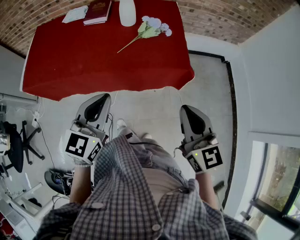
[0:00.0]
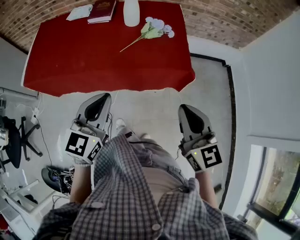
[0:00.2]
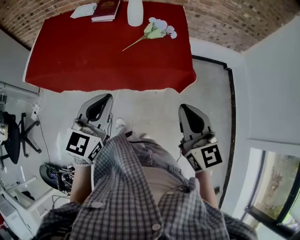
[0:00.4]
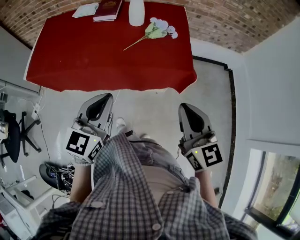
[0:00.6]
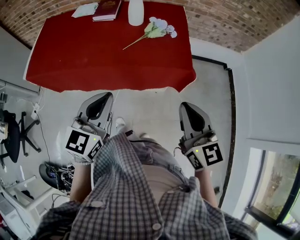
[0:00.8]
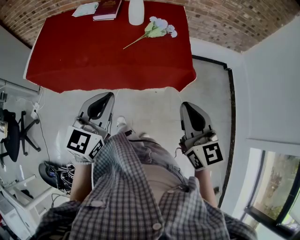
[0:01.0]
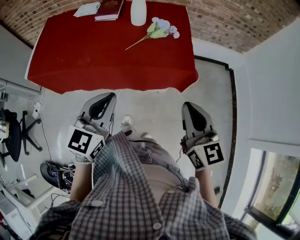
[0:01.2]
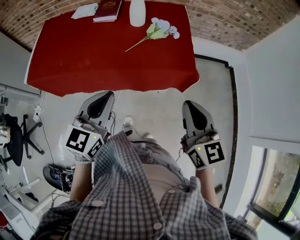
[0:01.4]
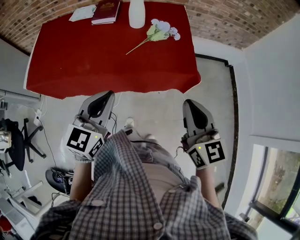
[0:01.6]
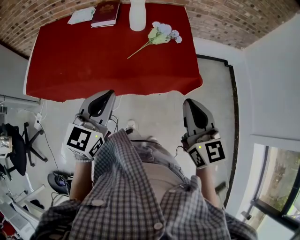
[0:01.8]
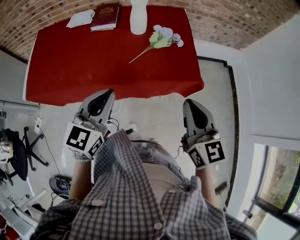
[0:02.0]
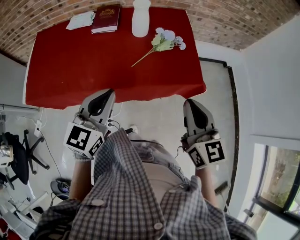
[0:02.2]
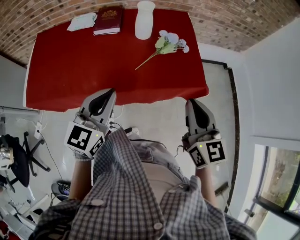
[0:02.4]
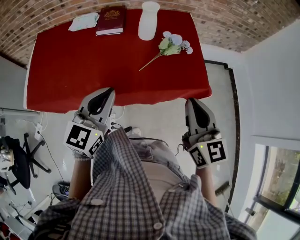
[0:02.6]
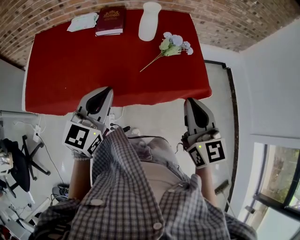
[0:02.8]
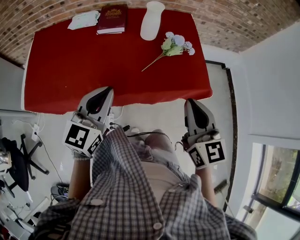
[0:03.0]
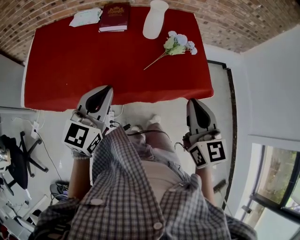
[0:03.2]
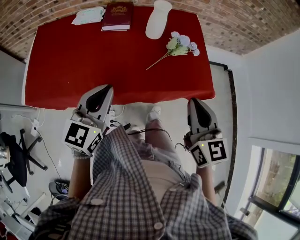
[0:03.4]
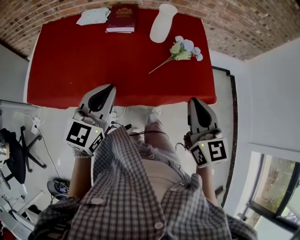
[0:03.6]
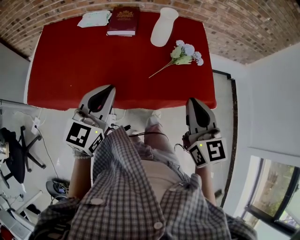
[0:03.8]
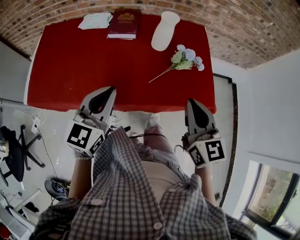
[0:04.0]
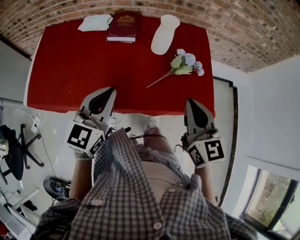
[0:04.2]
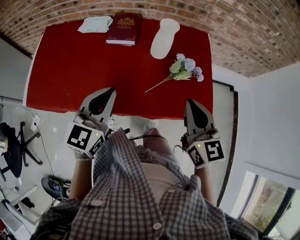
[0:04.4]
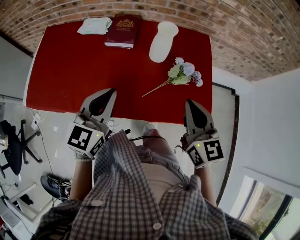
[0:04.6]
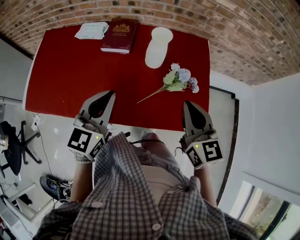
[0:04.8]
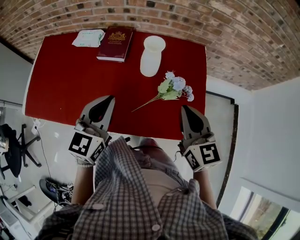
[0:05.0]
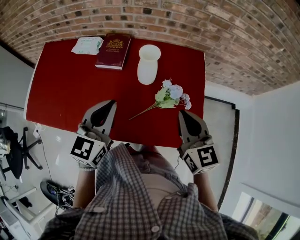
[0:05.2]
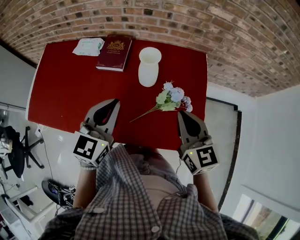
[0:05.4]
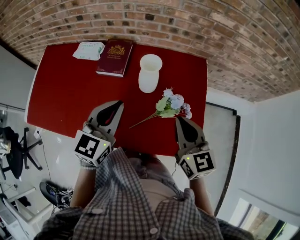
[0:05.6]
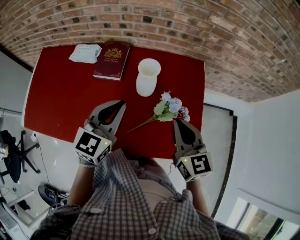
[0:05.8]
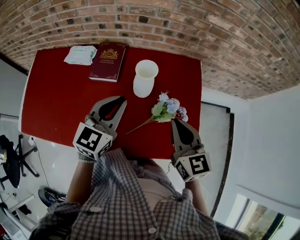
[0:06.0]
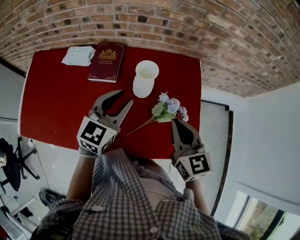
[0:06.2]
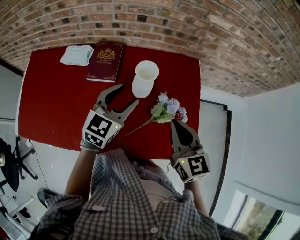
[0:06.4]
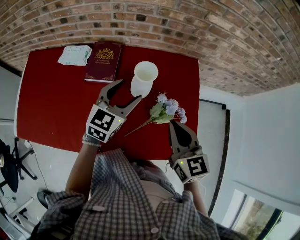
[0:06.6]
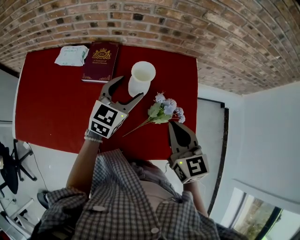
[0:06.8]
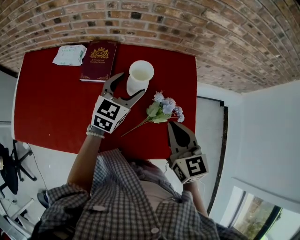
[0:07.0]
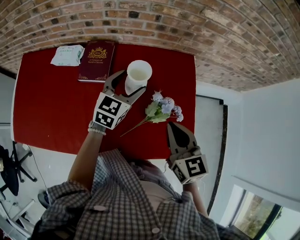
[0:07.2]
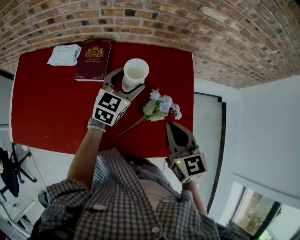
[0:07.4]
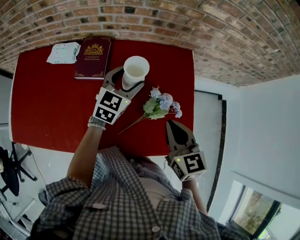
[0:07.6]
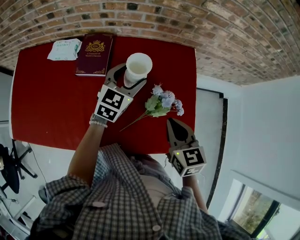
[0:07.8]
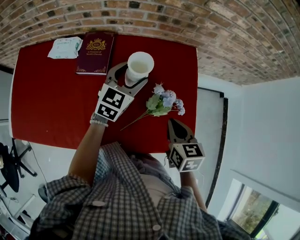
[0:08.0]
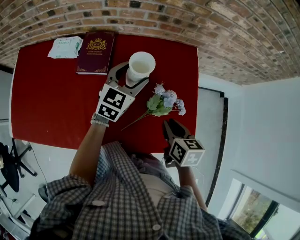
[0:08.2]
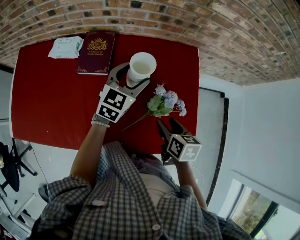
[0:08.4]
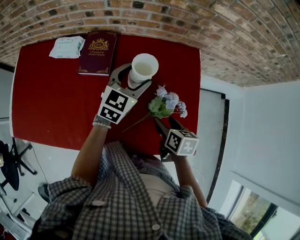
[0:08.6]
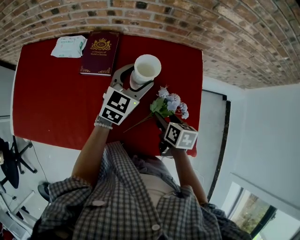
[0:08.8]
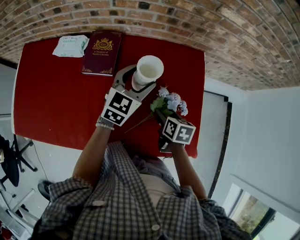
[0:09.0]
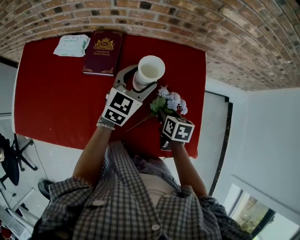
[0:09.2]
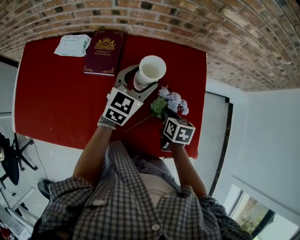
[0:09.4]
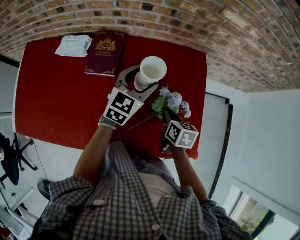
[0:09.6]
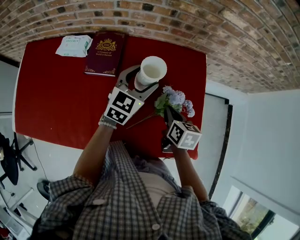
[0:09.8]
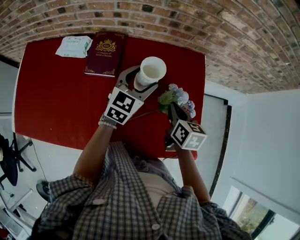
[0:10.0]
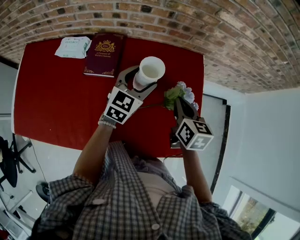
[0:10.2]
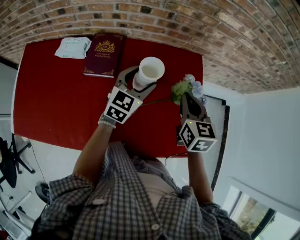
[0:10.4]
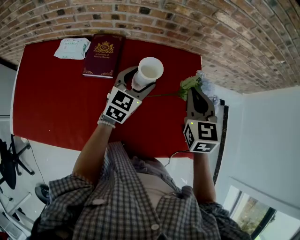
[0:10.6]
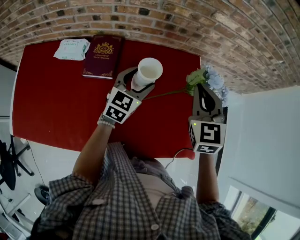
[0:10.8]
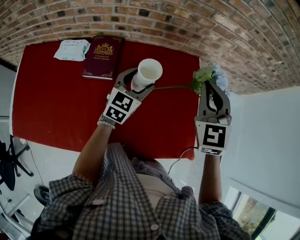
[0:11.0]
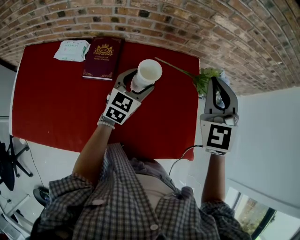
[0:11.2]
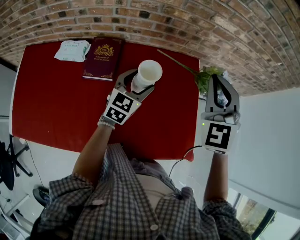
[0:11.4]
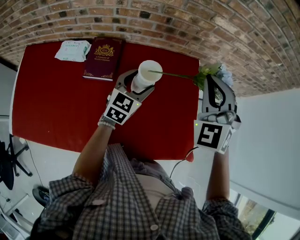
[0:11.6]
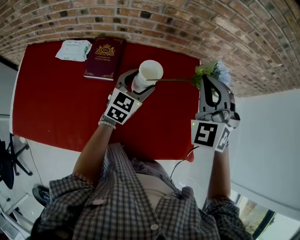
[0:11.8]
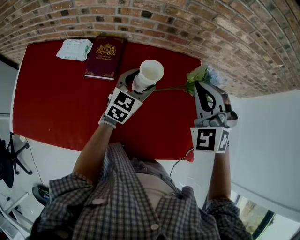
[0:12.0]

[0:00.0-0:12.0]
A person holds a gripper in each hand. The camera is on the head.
0:00.0 to 0:01.6: There are only small adjustments of the grippers.
0:01.6 to 0:03.0: The grippers both shift to the left and forward by some 15 cm.
0:03.0 to 0:04.4: The grippers both shift forward by approximately 10 cm.
0:04.4 to 0:06.0: The right gripper travels forward by approximately 15 cm. Meanwhile the left gripper is displaced forward and to the right by roughly 20 cm.
0:06.0 to 0:07.6: The left gripper travels forward, downward and to the right by approximately 15 cm, and opens up.
0:07.6 to 0:09.0: The right gripper moves downward, some 15 cm, rotates some 40 degrees, and opens up.
0:09.0 to 0:10.4: The right gripper heads upward, covering some 15 cm, turns by approximately 30 degrees, and closes its fingers.
0:10.4 to 0:12.0: The right gripper goes some 10 cm upward, and rotates around the line of its fingers by about 70 degrees, counterclockwise from behind.

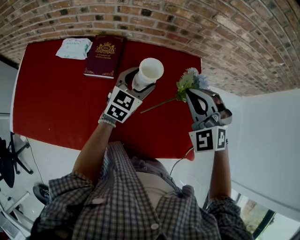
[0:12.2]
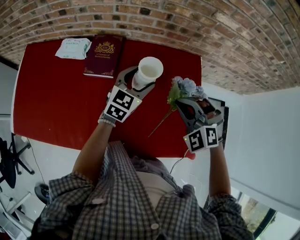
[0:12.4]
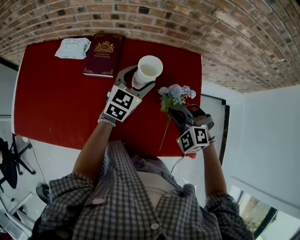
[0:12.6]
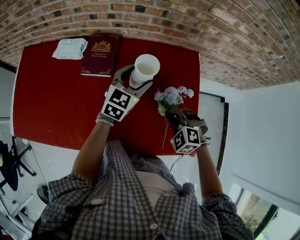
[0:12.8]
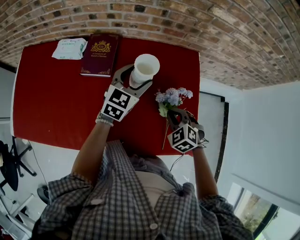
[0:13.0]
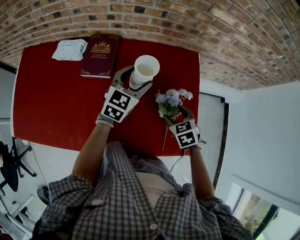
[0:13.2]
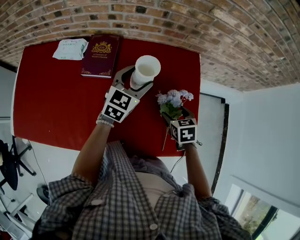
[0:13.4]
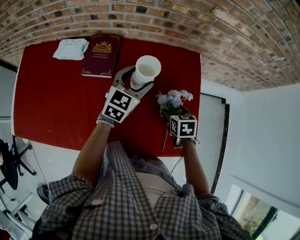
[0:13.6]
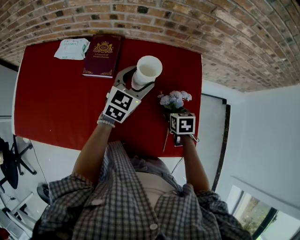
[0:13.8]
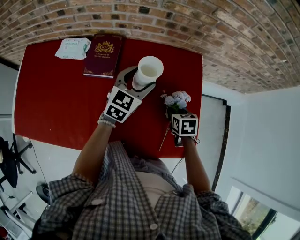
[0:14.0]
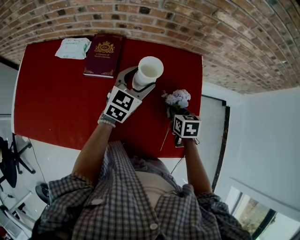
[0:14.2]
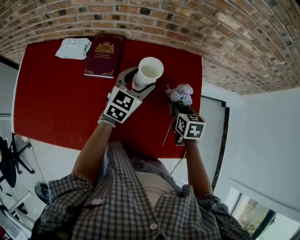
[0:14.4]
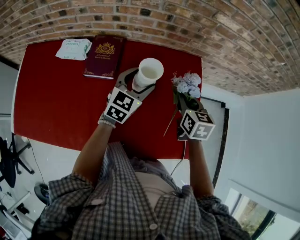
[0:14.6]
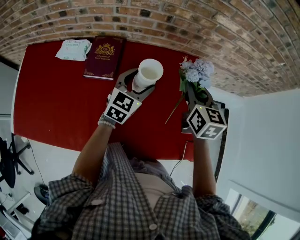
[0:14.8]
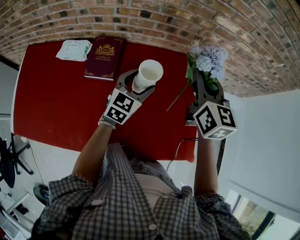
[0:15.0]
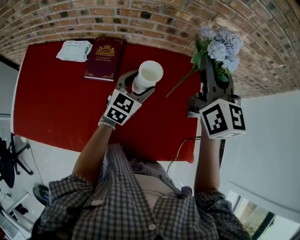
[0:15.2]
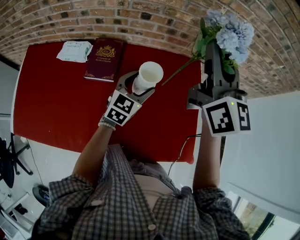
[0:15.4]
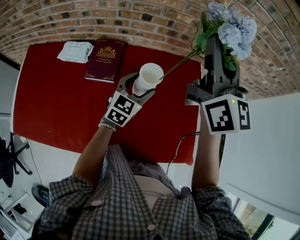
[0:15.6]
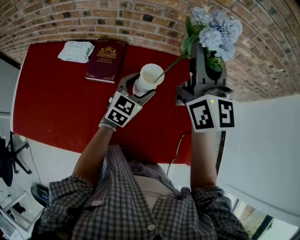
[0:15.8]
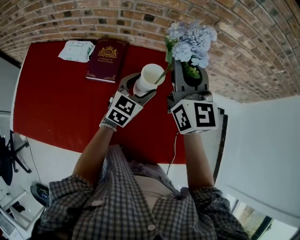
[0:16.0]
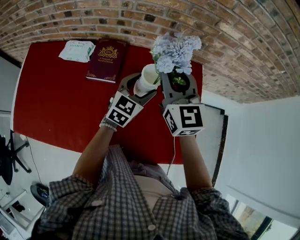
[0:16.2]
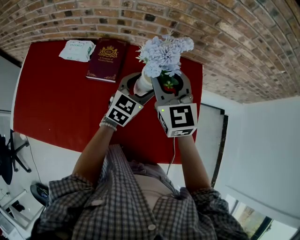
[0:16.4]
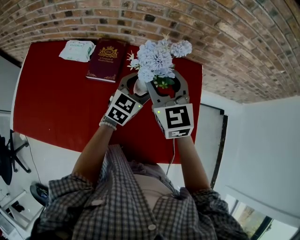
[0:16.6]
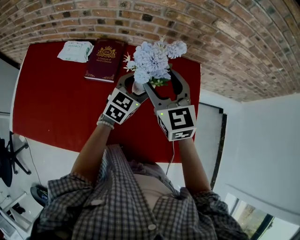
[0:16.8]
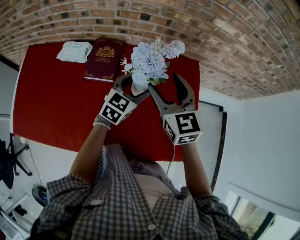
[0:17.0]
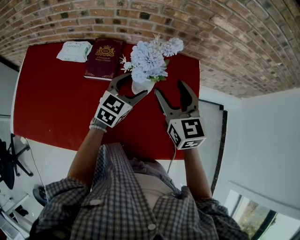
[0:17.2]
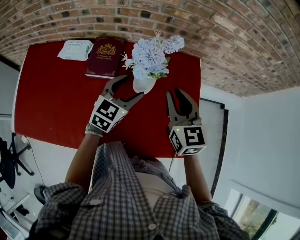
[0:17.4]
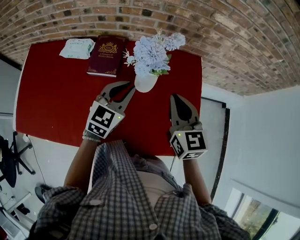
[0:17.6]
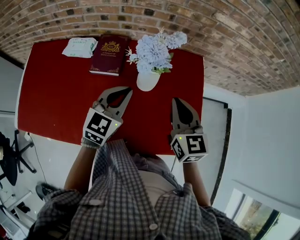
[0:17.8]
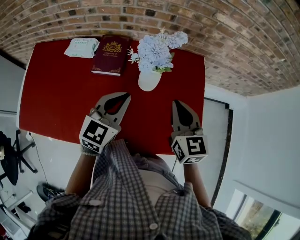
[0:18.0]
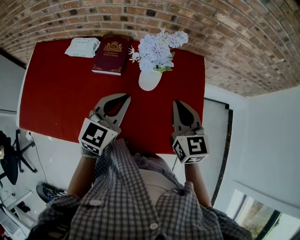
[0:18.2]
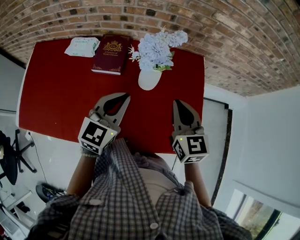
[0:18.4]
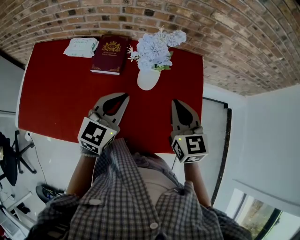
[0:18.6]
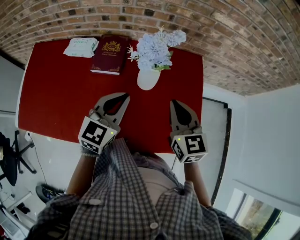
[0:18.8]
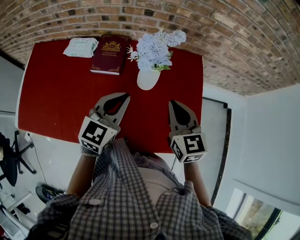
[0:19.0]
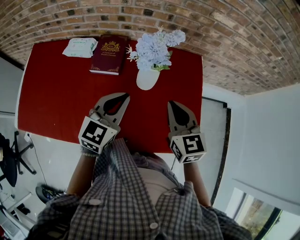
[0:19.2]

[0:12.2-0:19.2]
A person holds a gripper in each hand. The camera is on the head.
0:12.2 to 0:13.6: The right gripper is displaced downward by about 25 cm, rotates around the line of its fingers by about 70 degrees, clockwise from behind, and opens up.
0:13.6 to 0:15.0: The right gripper travels upward by approximately 30 cm, points its fingers approximately 50 degrees further upward, and closes up.
0:15.0 to 0:16.4: The right gripper moves to the left, roughly 15 cm, travels upward and back again, roughly 15 cm each way, and rotates about 20 degrees.
0:16.4 to 0:17.8: The right gripper shifts some 15 cm backward, to the right and downward, rotates about 20 degrees, and closes its fingers; the left gripper moves backward, to the left and upward, approximately 15 cm, and closes up.
0:17.8 to 0:19.2: The grippers move only a little.

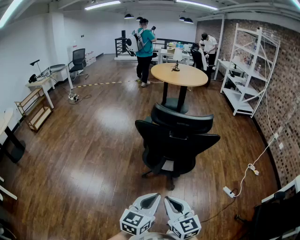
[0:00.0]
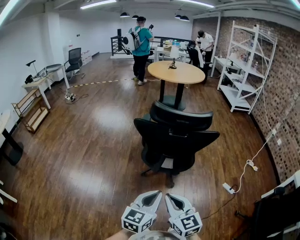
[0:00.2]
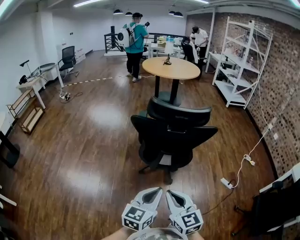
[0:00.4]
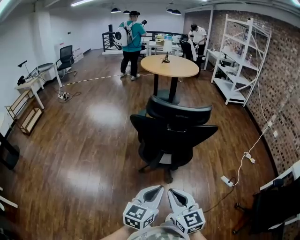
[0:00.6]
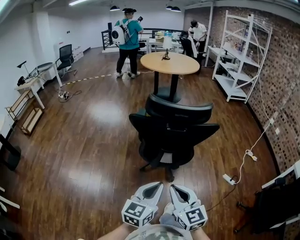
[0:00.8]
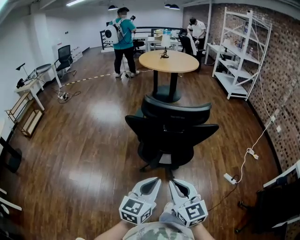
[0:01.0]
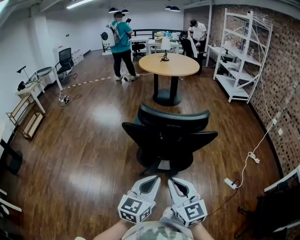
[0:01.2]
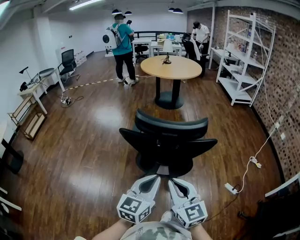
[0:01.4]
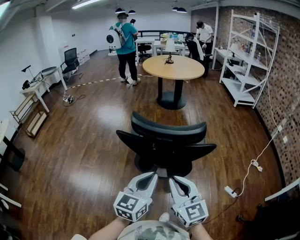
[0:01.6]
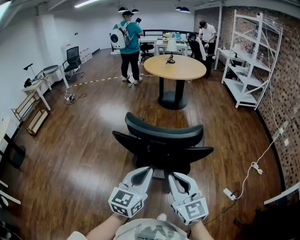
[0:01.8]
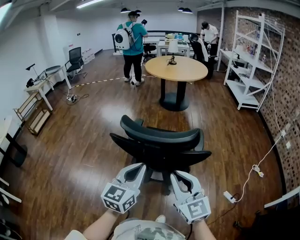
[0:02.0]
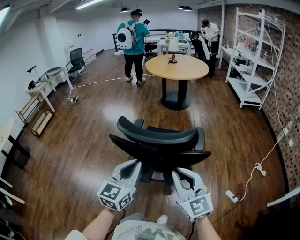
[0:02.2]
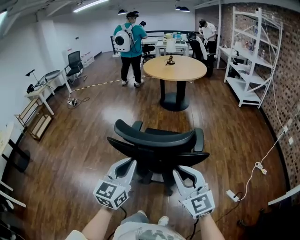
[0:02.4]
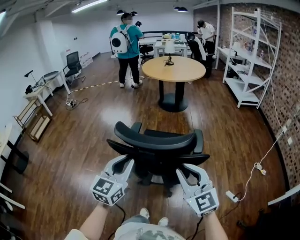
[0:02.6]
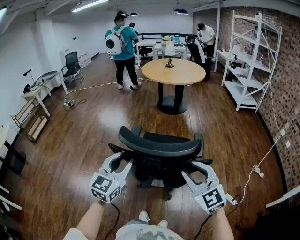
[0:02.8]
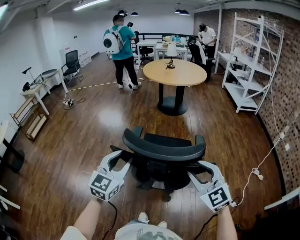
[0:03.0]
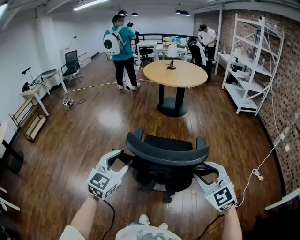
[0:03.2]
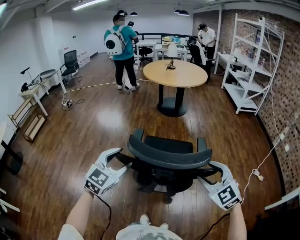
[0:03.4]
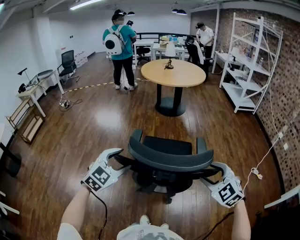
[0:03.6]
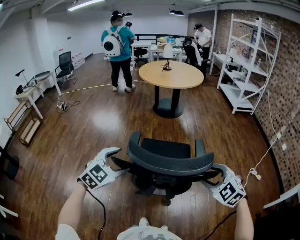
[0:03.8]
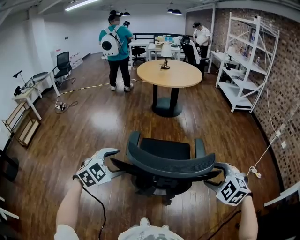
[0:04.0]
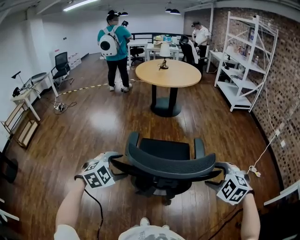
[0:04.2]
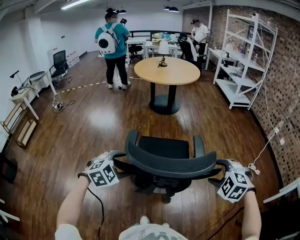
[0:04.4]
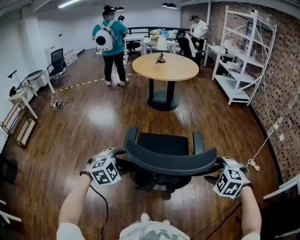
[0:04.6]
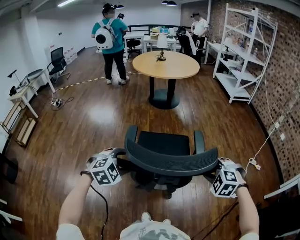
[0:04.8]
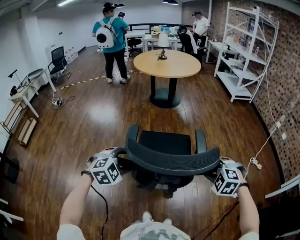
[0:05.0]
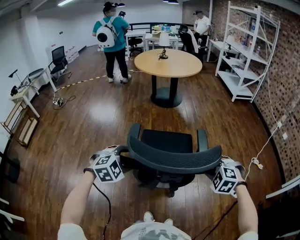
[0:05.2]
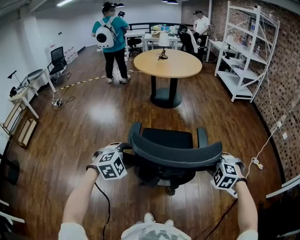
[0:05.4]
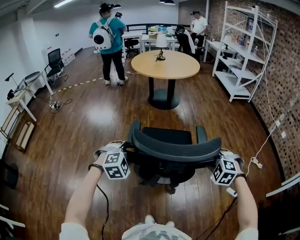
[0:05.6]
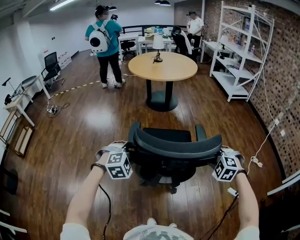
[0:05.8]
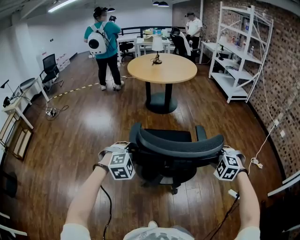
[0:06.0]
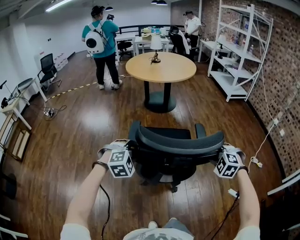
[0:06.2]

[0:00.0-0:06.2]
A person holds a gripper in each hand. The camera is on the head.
0:00.0 to 0:01.6: Both grippers move forward, roughly 20 cm.
0:01.6 to 0:03.2: The left gripper shifts about 20 cm forward and to the left, swivels roughly 20 degrees, and opens its fingers, while the right gripper goes about 15 cm forward and to the right, swivels about 30 degrees, and opens up.
0:03.2 to 0:04.6: The right gripper heads downward, covering about 10 cm, points its fingers about 40 degrees further downward, and opens its fingers, while the left gripper travels downward and forward by some 10 cm, tips its fingers downward by about 40 degrees, and opens up.
0:04.6 to 0:06.2: Both grippers move forward, approximately 20 cm. The left gripper closes its fingers. The right gripper closes its fingers.
